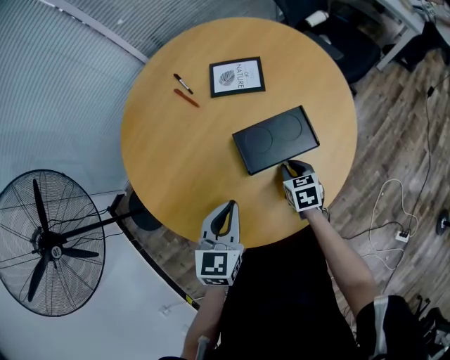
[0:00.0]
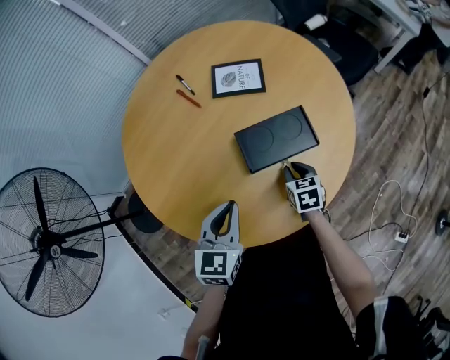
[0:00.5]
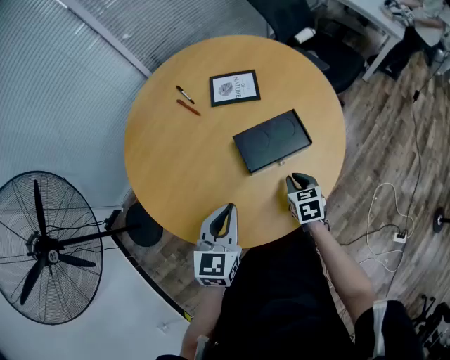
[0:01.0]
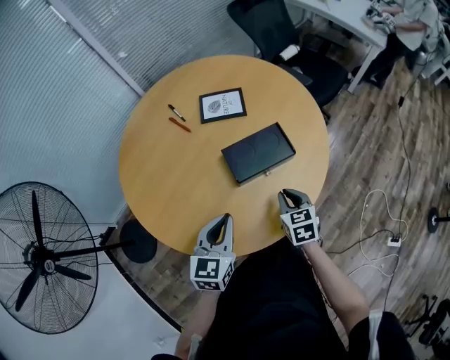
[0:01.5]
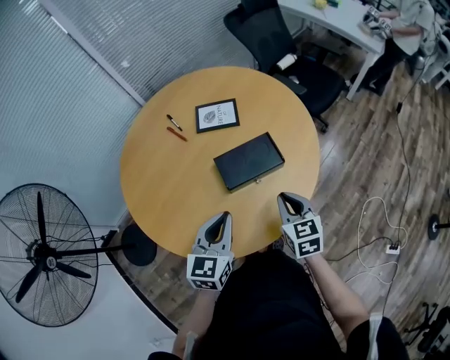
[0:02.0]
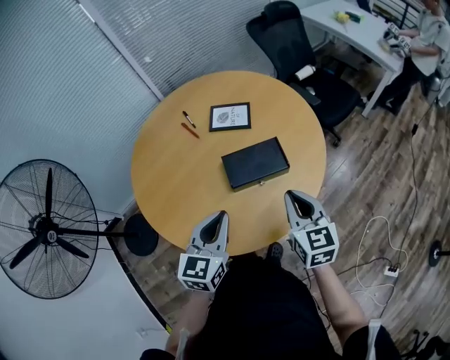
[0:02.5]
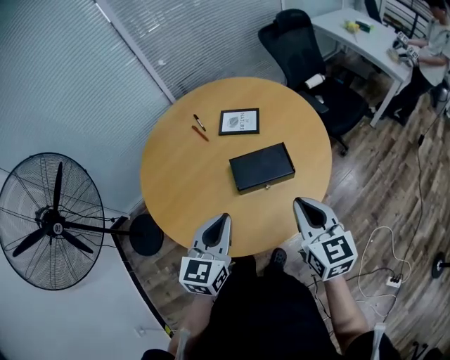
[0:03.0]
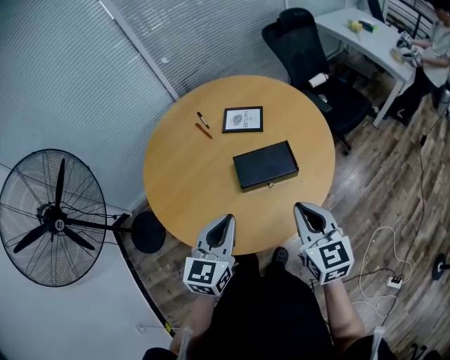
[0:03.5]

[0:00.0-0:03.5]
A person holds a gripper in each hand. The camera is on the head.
0:00.0 to 0:02.0: The right gripper is displaced upward and backward by some 20 cm, and swivels some 20 degrees. Meanwhile the left gripper goes about 5 cm upward.
0:02.0 to 0:03.5: The left gripper goes roughly 5 cm upward, while the right gripper heads upward, covering roughly 10 cm.

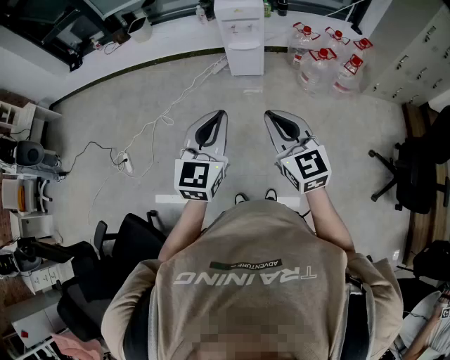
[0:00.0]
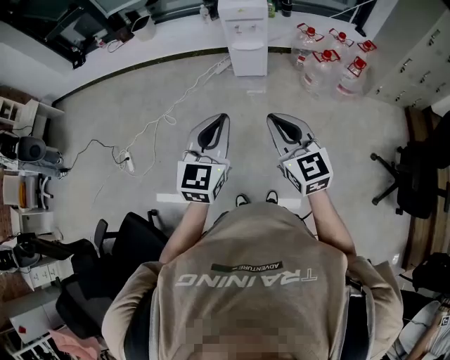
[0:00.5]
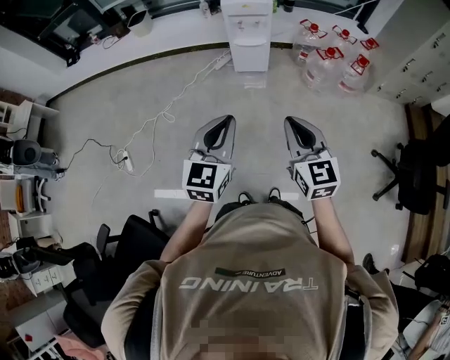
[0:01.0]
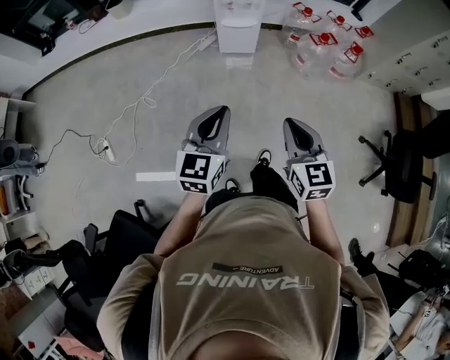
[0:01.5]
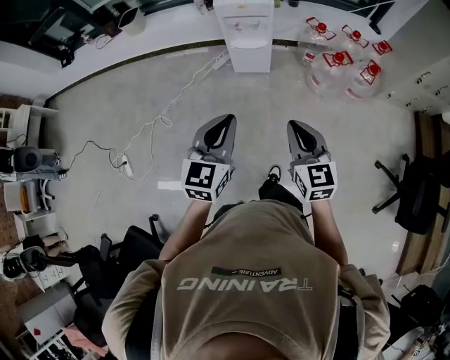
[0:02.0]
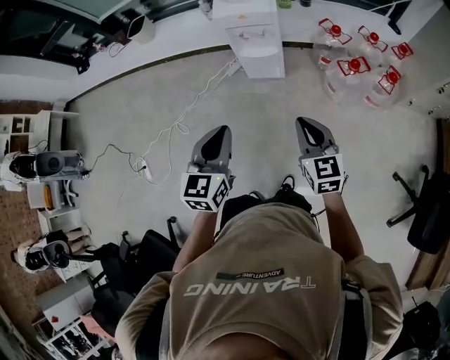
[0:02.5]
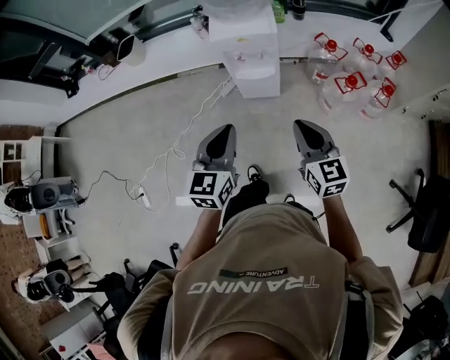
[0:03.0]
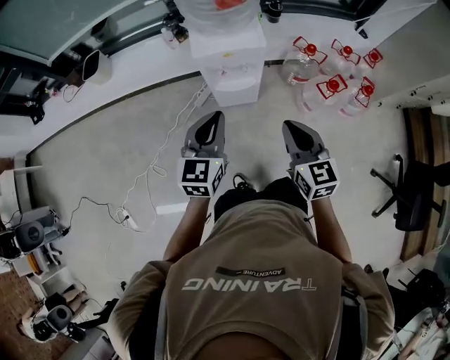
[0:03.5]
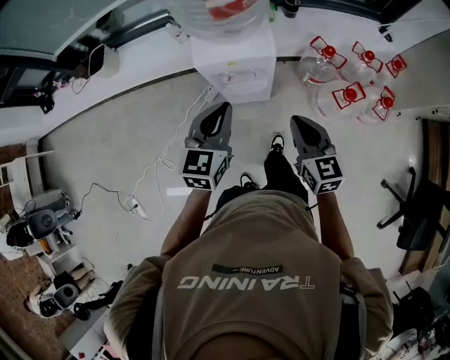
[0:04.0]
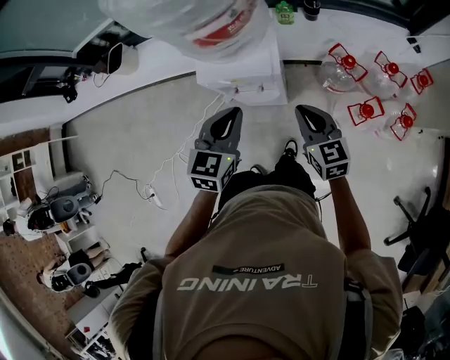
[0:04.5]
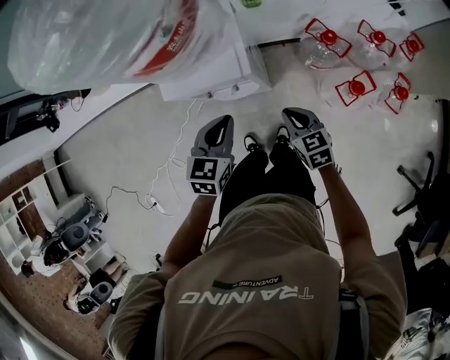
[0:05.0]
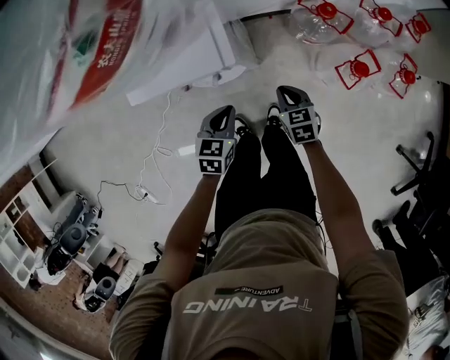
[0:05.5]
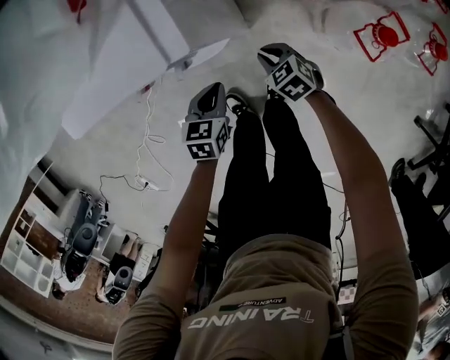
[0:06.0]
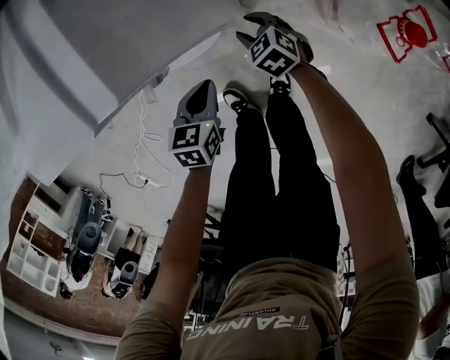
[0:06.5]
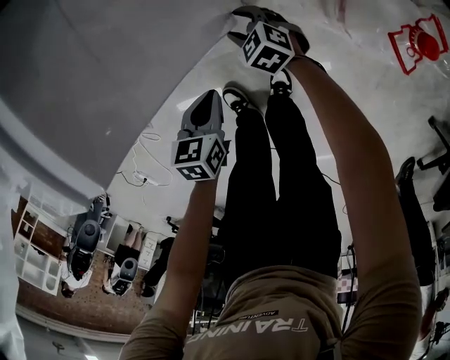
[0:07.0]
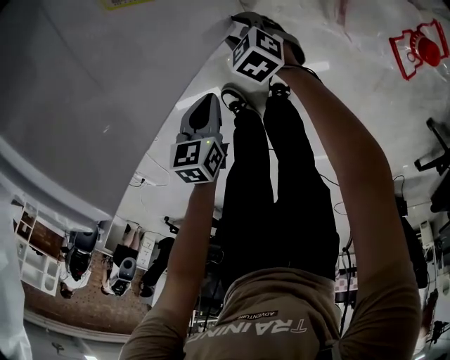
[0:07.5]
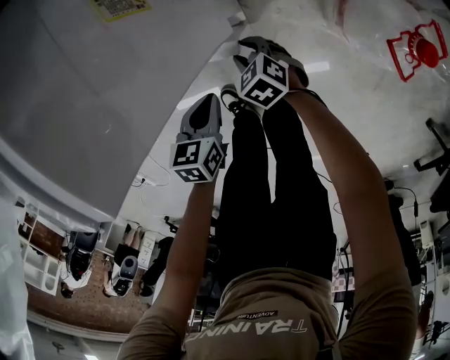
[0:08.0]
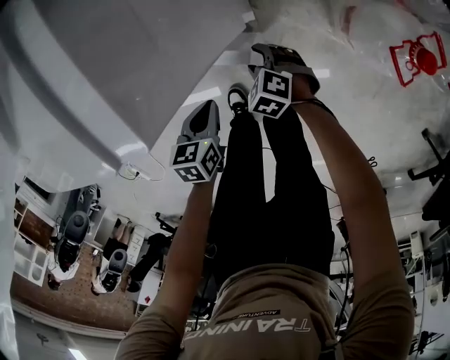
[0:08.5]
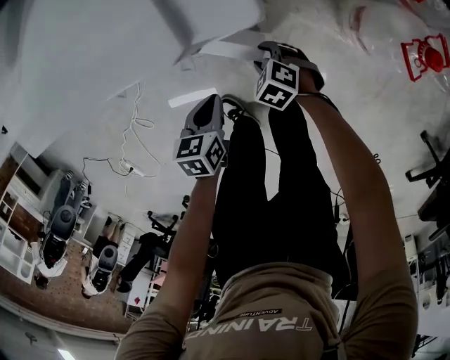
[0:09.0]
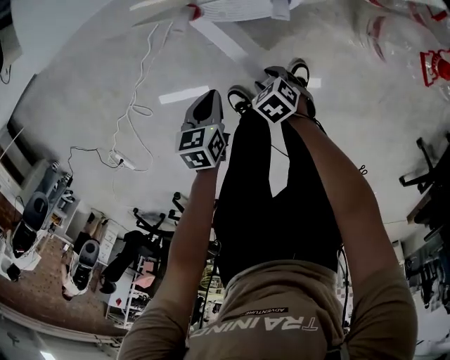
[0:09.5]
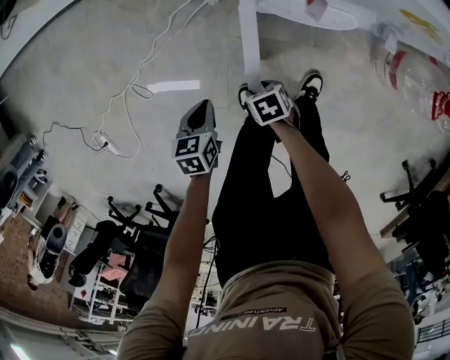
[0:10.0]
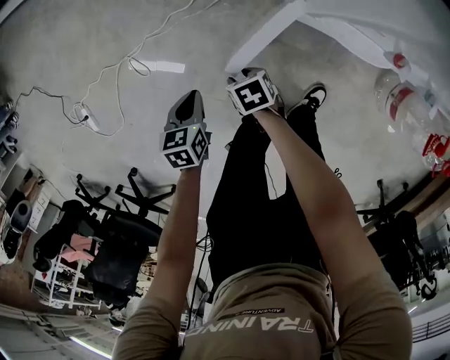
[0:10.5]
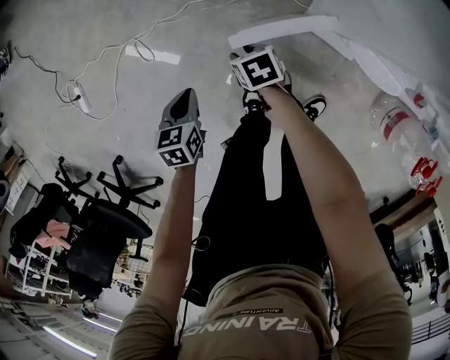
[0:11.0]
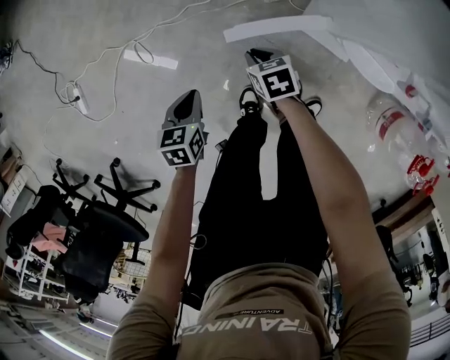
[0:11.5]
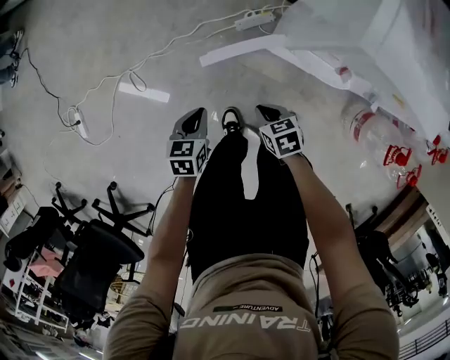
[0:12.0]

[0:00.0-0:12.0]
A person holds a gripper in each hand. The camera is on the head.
0:00.0 to 0:02.0: The right gripper travels forward and downward by about 20 cm. The left gripper travels forward by approximately 20 cm.
0:02.0 to 0:04.0: Both grippers are carried forward, approximately 40 cm.
0:04.0 to 0:06.0: Both grippers move downward, some 50 cm. The left gripper points its fingers about 40 degrees further downward. Meanwhile the right gripper angles its fingers downward, by some 40 degrees.
0:06.0 to 0:08.0: The left gripper heads downward, covering about 10 cm. The right gripper shifts roughly 10 cm downward and to the left, and opens its fingers.
0:08.0 to 0:10.0: The left gripper changes place by approximately 35 cm, and swivels roughly 20 degrees. Meanwhile the right gripper moves roughly 30 cm, and turns by approximately 30 degrees.
0:10.0 to 0:12.0: The right gripper is displaced upward by roughly 10 cm, reaches some 20 cm forward, then returns, and closes up; the left gripper moves upward, roughly 5 cm, and moves approximately 15 cm to the left and comes back.

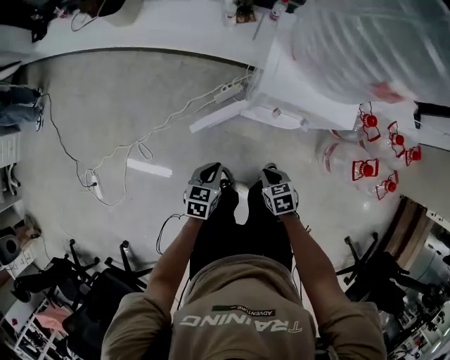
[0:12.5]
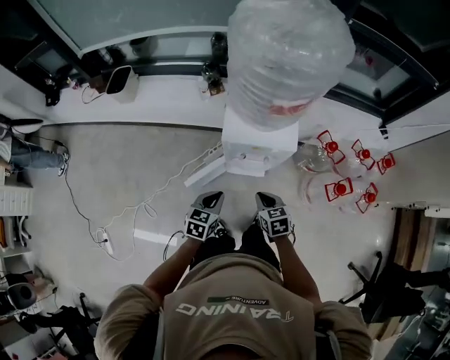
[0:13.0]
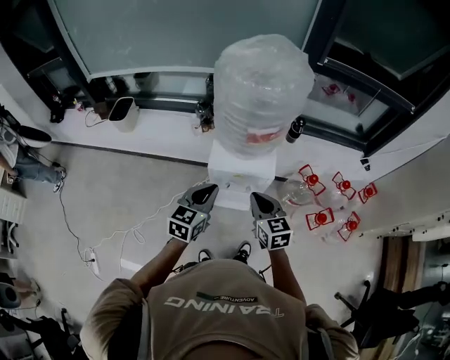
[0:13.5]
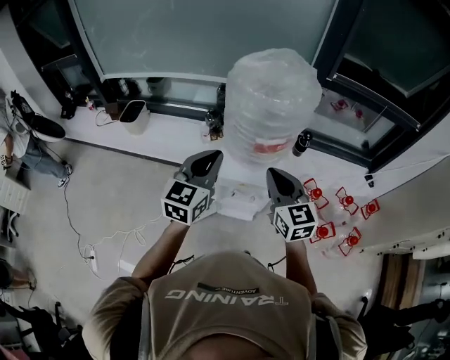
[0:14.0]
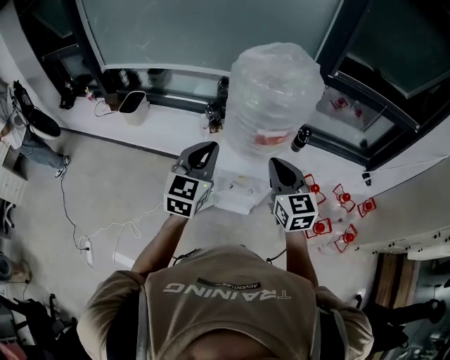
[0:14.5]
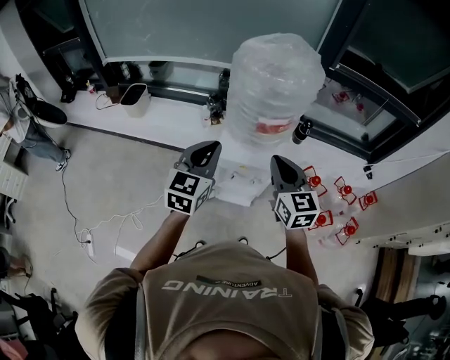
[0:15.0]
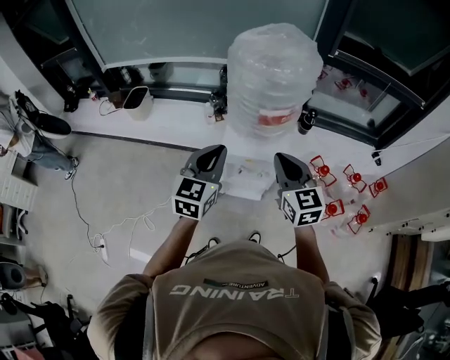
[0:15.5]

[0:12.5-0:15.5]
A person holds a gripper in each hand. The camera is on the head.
0:12.5 to 0:14.0: Both grippers move upward, roughly 50 cm. The right gripper tips its fingers upward by approximately 50 degrees, while the left gripper tilts its fingers approximately 40 degrees upward.
0:14.0 to 0:15.5: The left gripper moves some 5 cm.

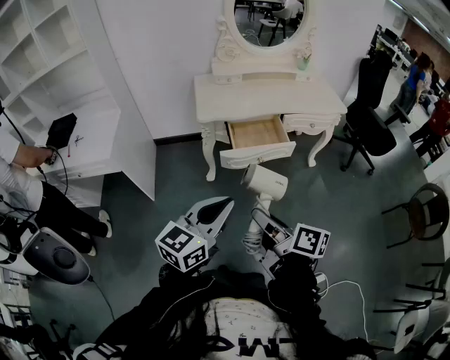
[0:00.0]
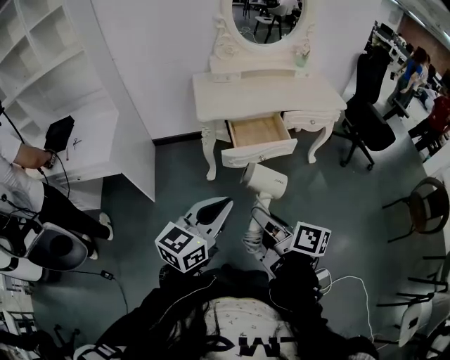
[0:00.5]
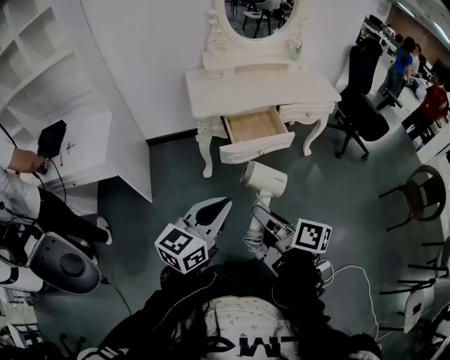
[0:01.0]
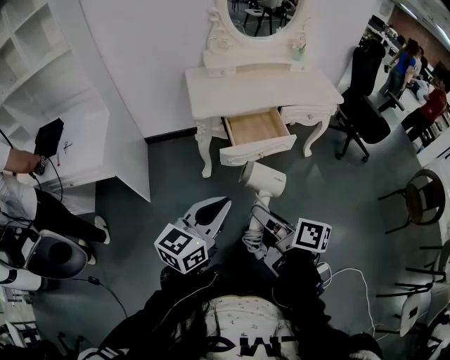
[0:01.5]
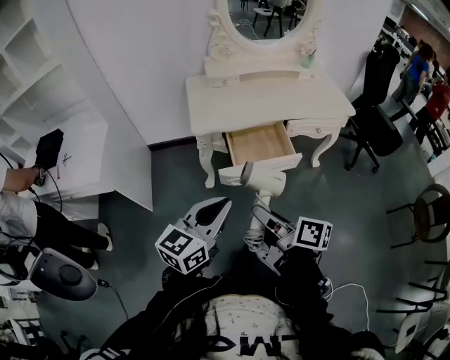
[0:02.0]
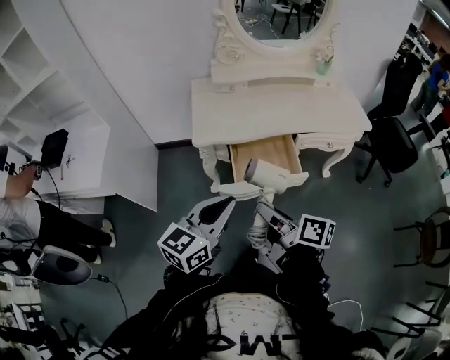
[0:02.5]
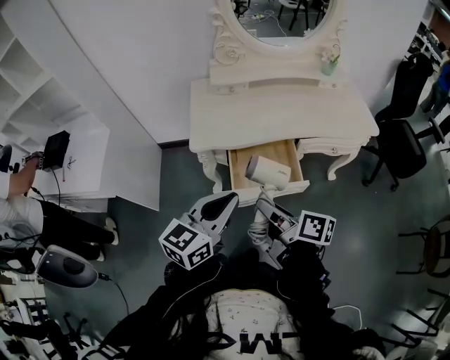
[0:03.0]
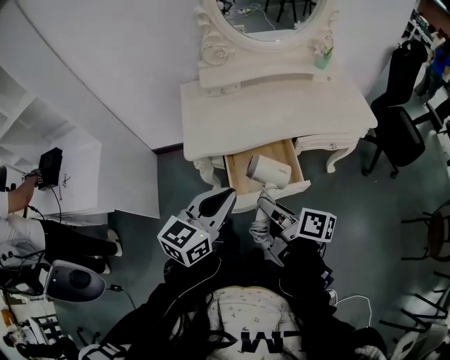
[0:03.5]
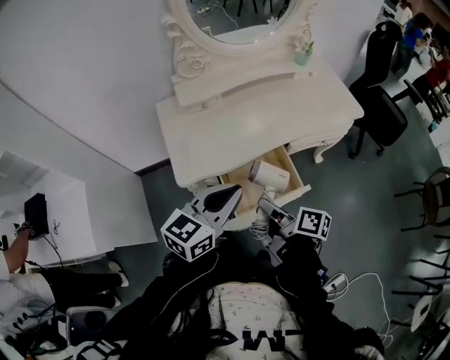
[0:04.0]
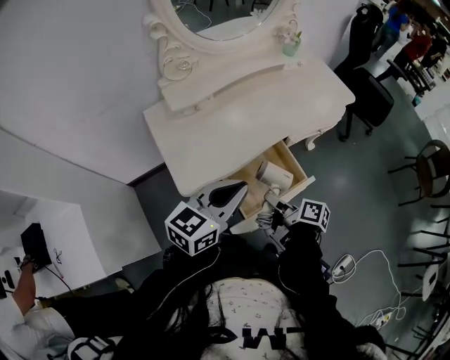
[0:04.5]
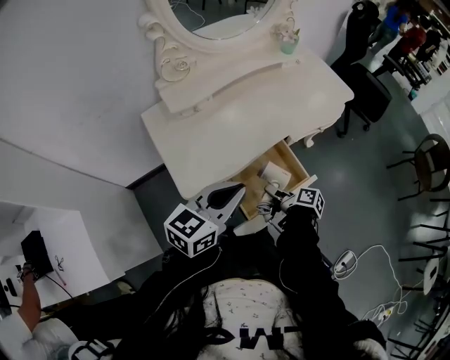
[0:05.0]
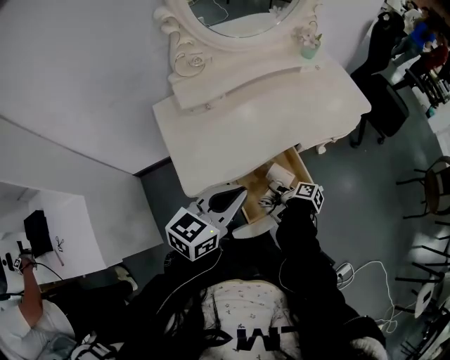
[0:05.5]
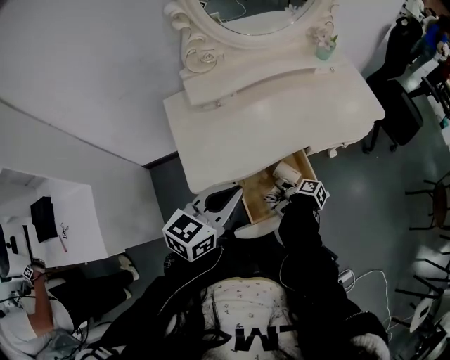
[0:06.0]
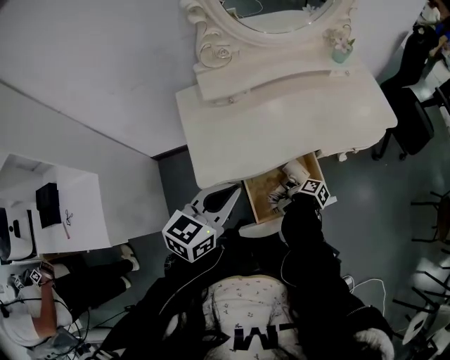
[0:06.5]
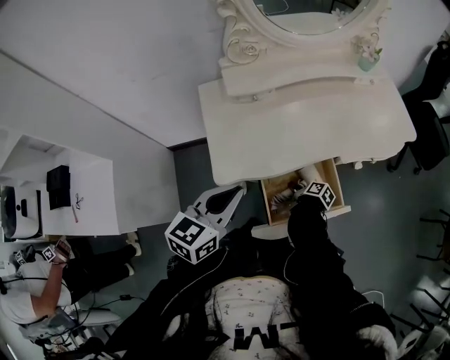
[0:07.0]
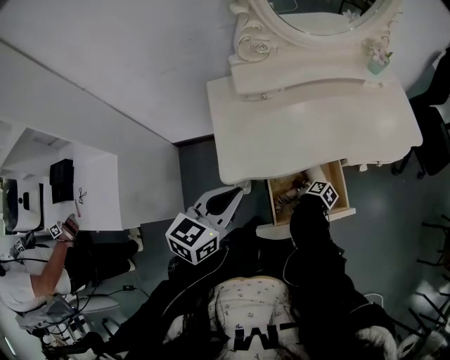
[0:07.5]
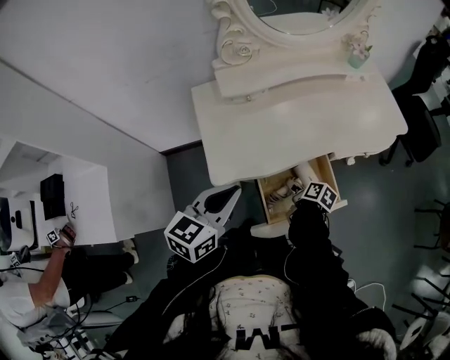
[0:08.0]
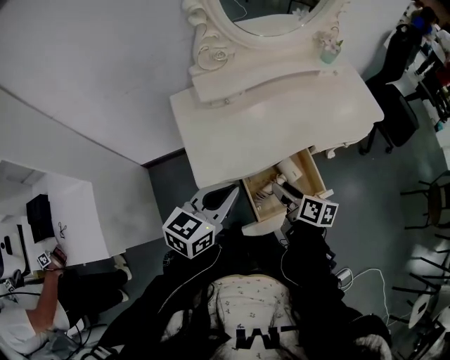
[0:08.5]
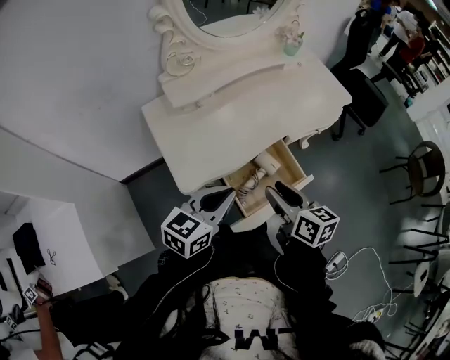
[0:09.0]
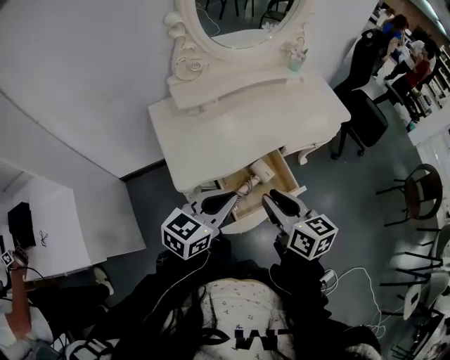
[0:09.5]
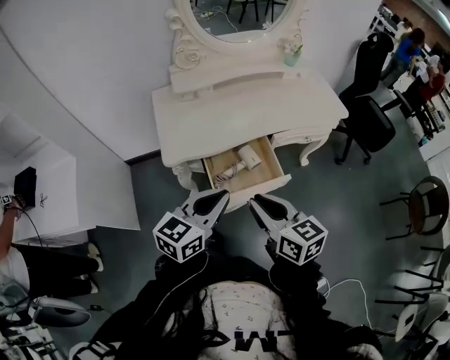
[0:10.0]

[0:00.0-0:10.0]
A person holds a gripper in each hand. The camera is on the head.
0:00.0 to 0:02.0: Both grippers move forward, approximately 15 cm.
0:02.0 to 0:04.0: Both grippers move forward, approximately 25 cm.
0:04.0 to 0:06.0: The left gripper travels to the left by about 5 cm; the right gripper heads downward and forward, covering roughly 25 cm, and changes its angle by approximately 30 degrees.
0:06.0 to 0:08.0: The right gripper reaches about 5 cm downward, then returns, and swivels roughly 30 degrees. The left gripper travels to the left by approximately 5 cm.
0:08.0 to 0:10.0: The left gripper is displaced to the right and backward by about 20 cm, while the right gripper moves upward and backward, approximately 35 cm, rolls counterclockwise, seen from behind, by approximately 50 degrees, and closes up.
